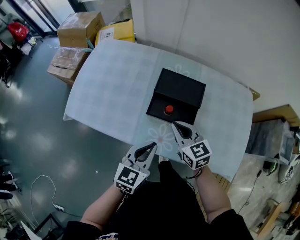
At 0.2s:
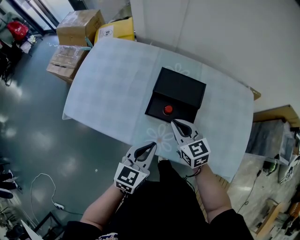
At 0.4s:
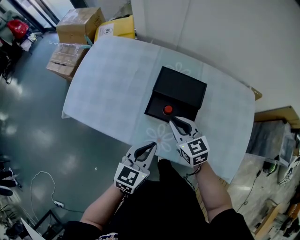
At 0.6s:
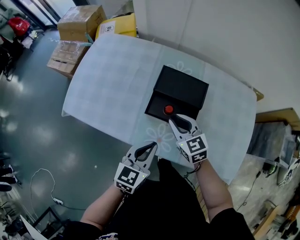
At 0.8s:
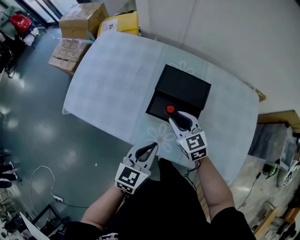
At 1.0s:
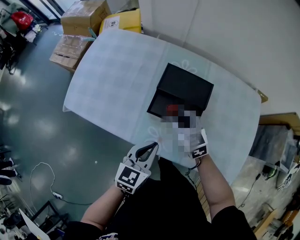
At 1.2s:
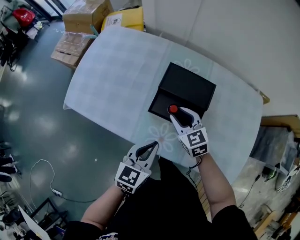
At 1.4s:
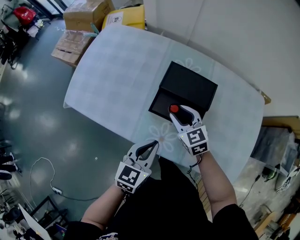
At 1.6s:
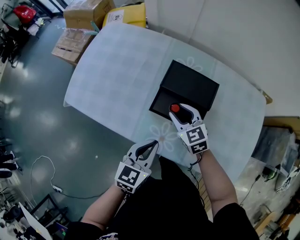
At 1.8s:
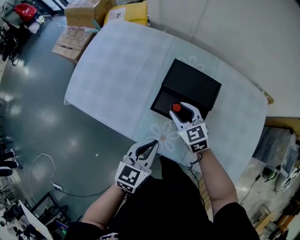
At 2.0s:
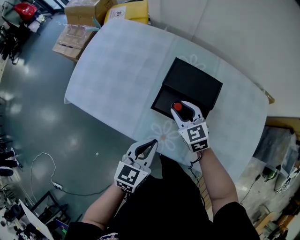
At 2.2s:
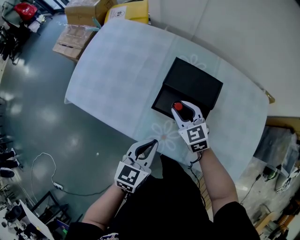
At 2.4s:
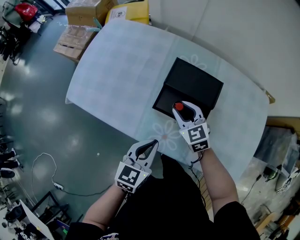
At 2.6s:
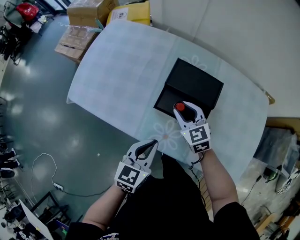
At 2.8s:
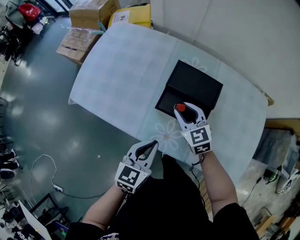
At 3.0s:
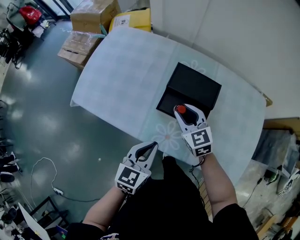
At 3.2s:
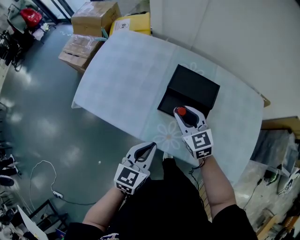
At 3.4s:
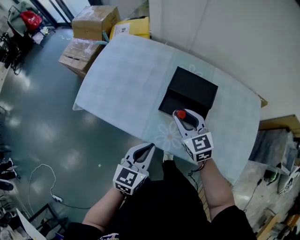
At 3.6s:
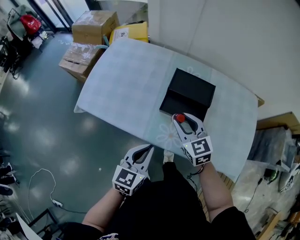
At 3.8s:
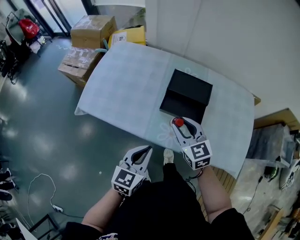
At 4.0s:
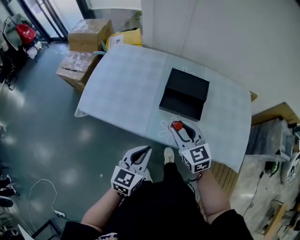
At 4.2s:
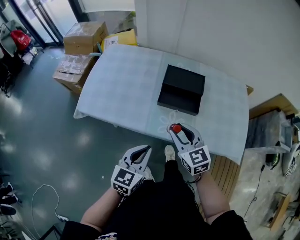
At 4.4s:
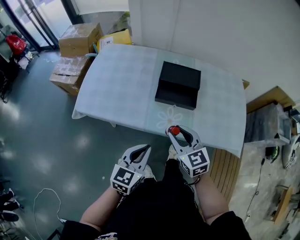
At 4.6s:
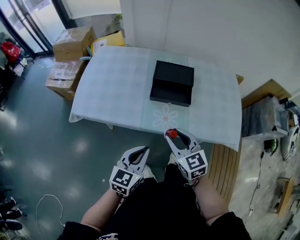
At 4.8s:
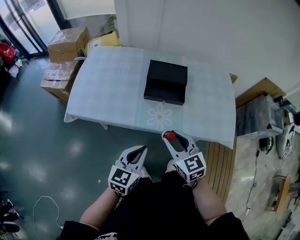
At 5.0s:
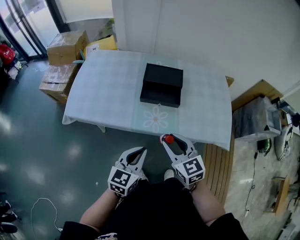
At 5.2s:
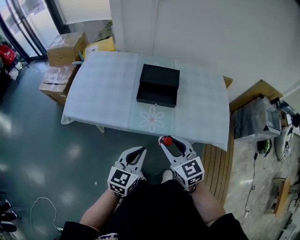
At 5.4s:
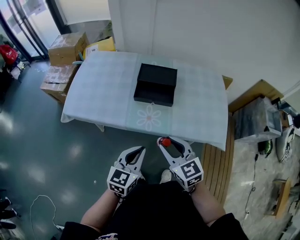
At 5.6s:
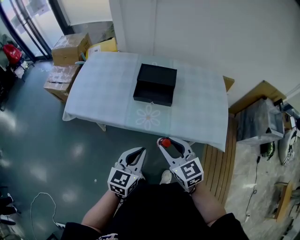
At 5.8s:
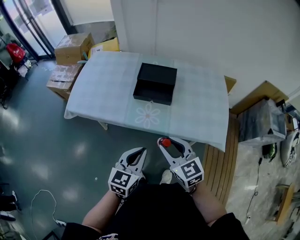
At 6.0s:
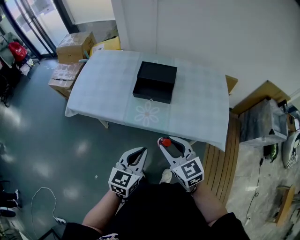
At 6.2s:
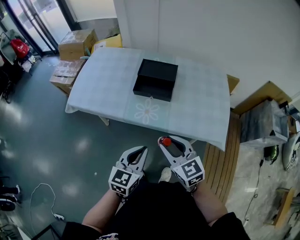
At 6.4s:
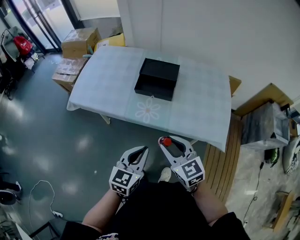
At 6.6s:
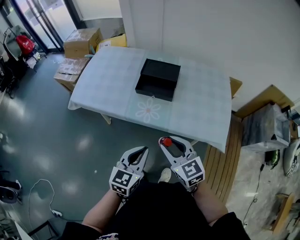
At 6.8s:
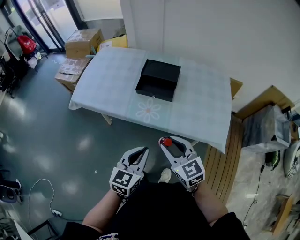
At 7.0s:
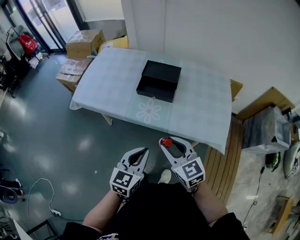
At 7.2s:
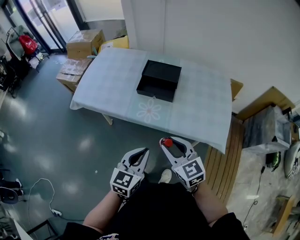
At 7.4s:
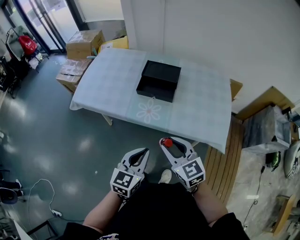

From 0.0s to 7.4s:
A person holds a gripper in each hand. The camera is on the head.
From 0.0s to 1.4s: The right gripper shifts some 10 cm forward and downward, and opens.
From 1.4s to 3.0s: The grippers make only small movements.
From 3.0s to 4.4s: The left gripper travels backward and to the left by about 15 cm. Meanwhile the right gripper travels backward by about 20 cm.
From 4.4s to 6.0s: The right gripper travels backward and to the right by roughly 15 cm; the left gripper moves to the right and backward, about 15 cm.
From 6.0s to 7.4s: The grippers move only a little.

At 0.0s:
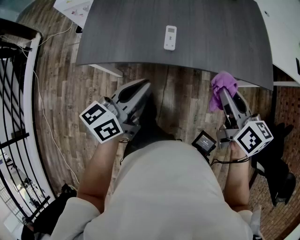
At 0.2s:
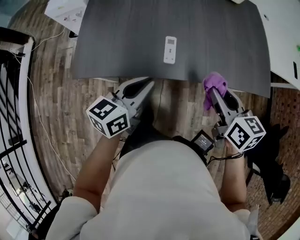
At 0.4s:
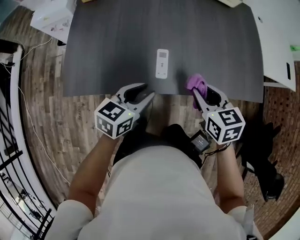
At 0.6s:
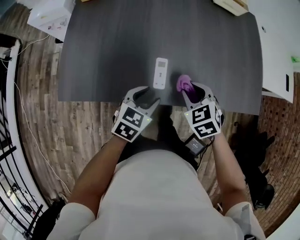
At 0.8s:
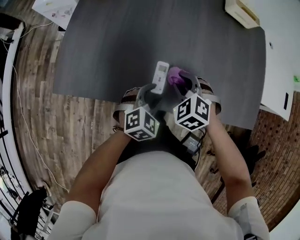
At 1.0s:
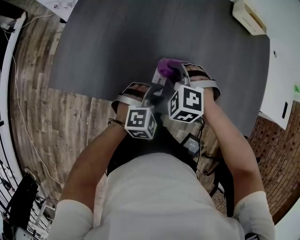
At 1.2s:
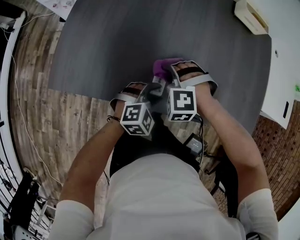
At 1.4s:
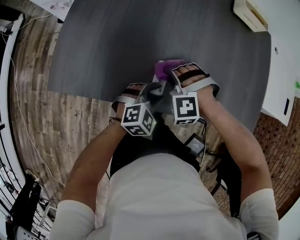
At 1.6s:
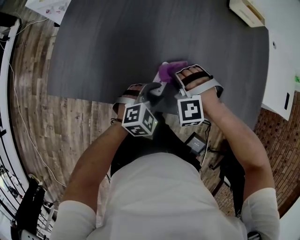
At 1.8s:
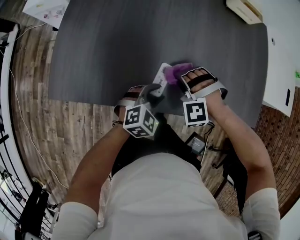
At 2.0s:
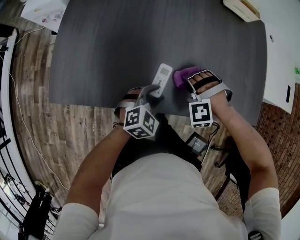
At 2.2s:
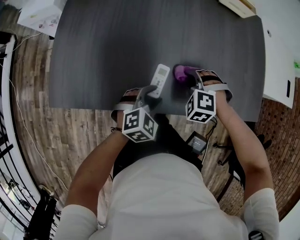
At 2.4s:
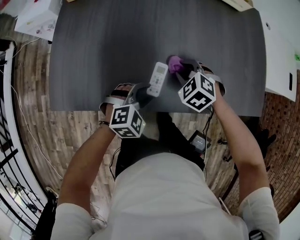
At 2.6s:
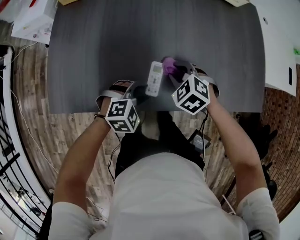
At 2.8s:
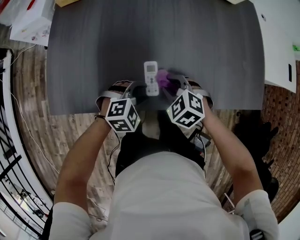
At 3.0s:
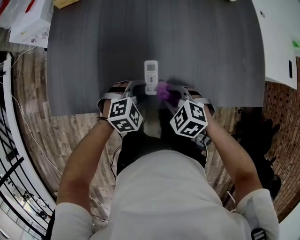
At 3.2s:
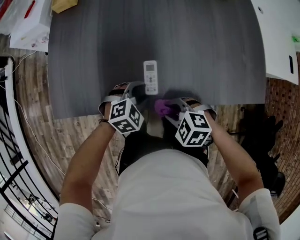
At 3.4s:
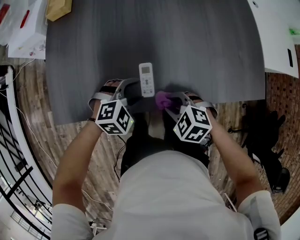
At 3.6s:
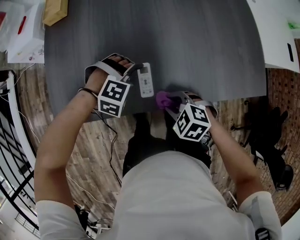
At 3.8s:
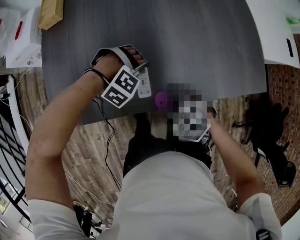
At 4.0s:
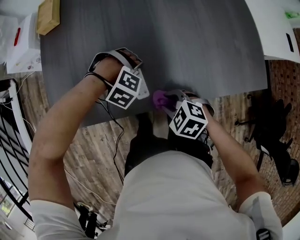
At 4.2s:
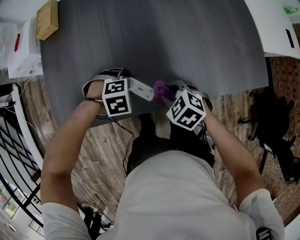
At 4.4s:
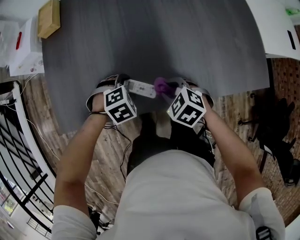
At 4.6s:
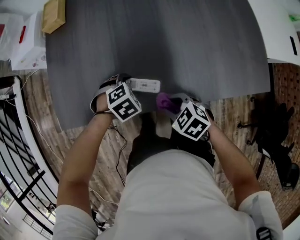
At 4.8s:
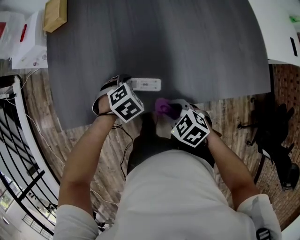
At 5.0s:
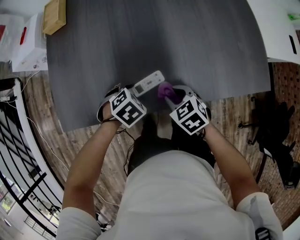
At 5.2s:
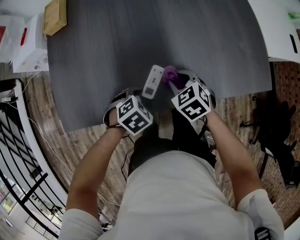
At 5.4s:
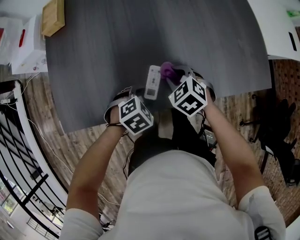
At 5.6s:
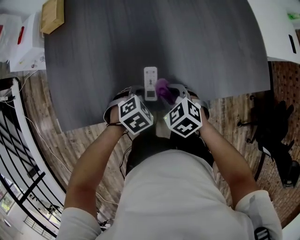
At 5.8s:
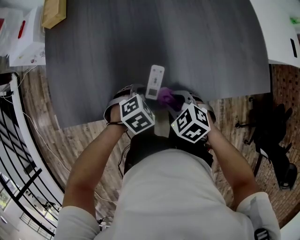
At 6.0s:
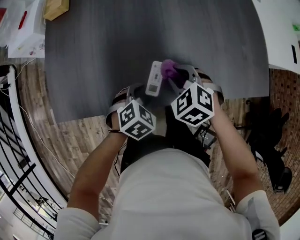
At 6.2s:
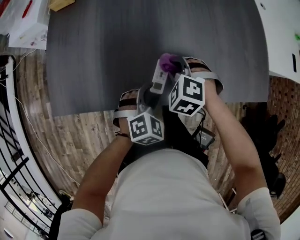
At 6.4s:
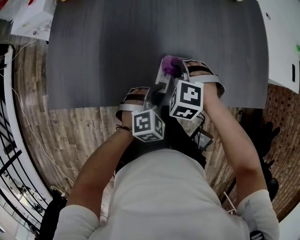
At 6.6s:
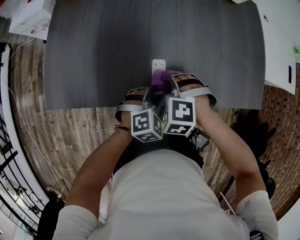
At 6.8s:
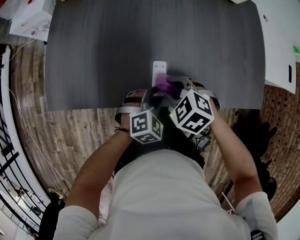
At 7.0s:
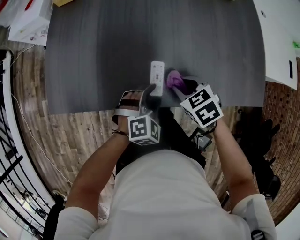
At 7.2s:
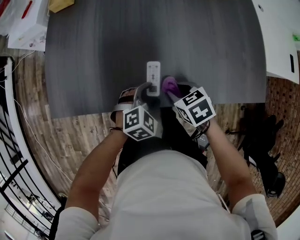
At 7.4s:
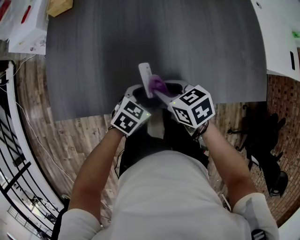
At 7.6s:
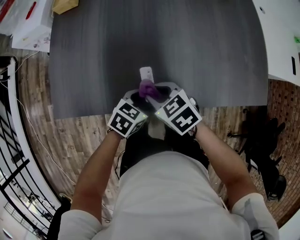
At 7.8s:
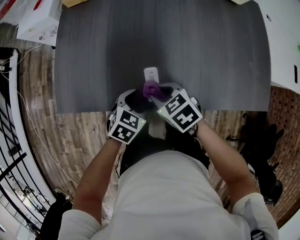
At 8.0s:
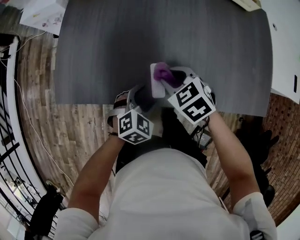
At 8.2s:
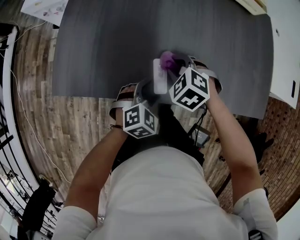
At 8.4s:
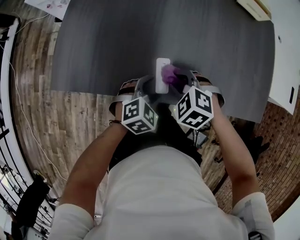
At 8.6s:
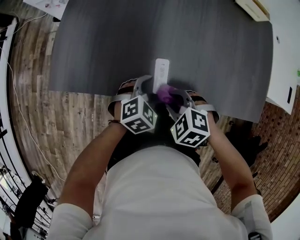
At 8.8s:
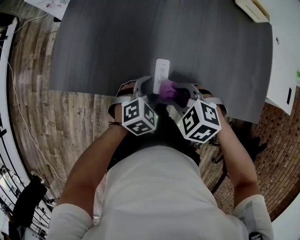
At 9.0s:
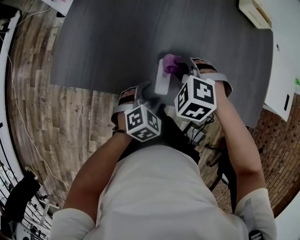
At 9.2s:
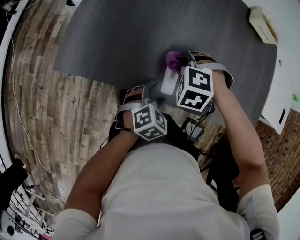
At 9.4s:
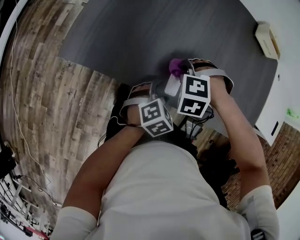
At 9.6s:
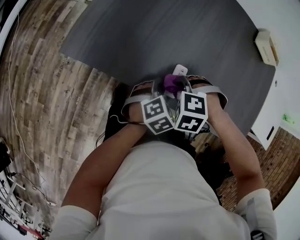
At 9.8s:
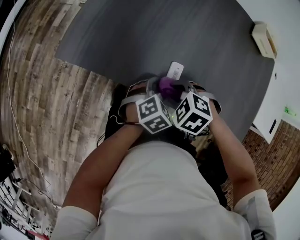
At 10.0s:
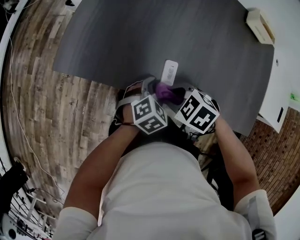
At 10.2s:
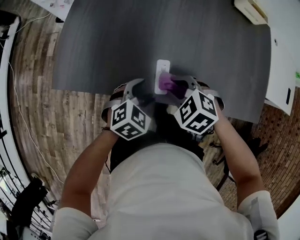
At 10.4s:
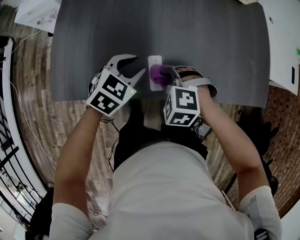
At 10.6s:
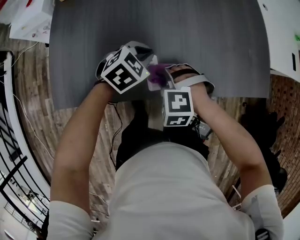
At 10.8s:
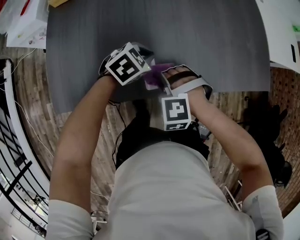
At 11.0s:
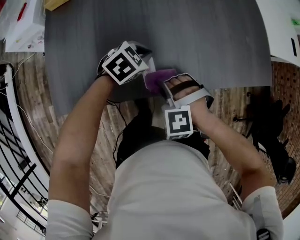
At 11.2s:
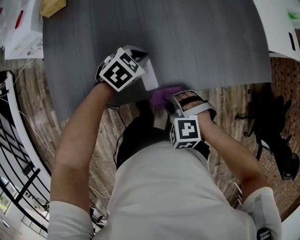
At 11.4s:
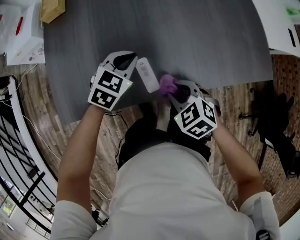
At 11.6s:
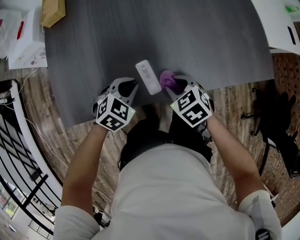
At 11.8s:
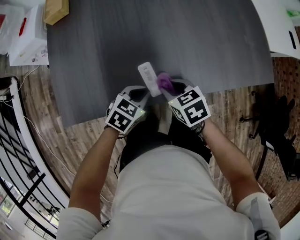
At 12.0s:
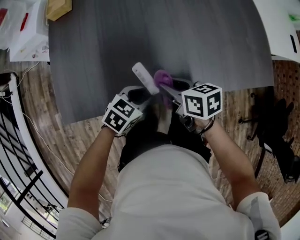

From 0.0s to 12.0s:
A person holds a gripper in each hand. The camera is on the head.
From 0.0s to 1.6s: The right gripper heads downward, forward and to the left, covering approximately 30 cm, and rolls counterclockwise, seen from behind, by some 120 degrees. Meanwhile the left gripper moves downward and forward, some 25 cm, twists roughly 50 degrees clockwise, seen from behind, and opens up.
From 1.6s to 3.0s: The left gripper swivels about 20 degrees, while the right gripper moves backward, about 5 cm, and twists roughly 60 degrees clockwise, seen from behind.
From 3.0s to 4.4s: The left gripper swivels roughly 20 degrees.
From 4.4s to 6.0s: The right gripper ends up some 5 cm from where it was, while the left gripper ends up some 5 cm from where it was, and changes its angle by some 30 degrees.
From 6.0s to 7.6s: The left gripper swivels some 30 degrees, while the right gripper changes place by about 10 cm, and rotates roughly 30 degrees.
From 7.6s to 9.0s: The left gripper changes its angle by about 30 degrees; the right gripper moves approximately 5 cm, and rolls counterclockwise, seen from behind, by approximately 60 degrees.
From 9.0s to 10.4s: The left gripper ends up approximately 10 cm from where it was, and closes up.
From 10.4s to 12.0s: The right gripper travels backward and back again, approximately 10 cm each way, and twists about 90 degrees clockwise, seen from behind; the left gripper travels backward, to the right and downward by about 10 cm, and changes its angle by approximately 20 degrees.

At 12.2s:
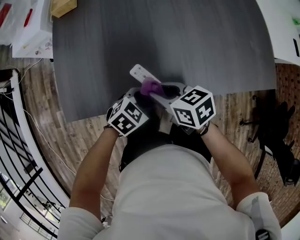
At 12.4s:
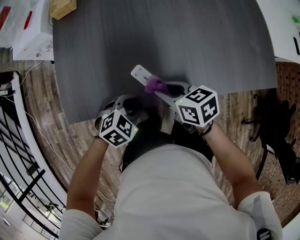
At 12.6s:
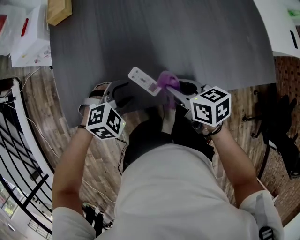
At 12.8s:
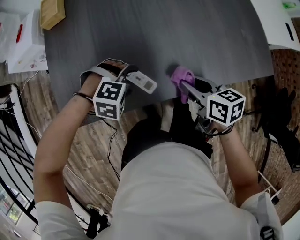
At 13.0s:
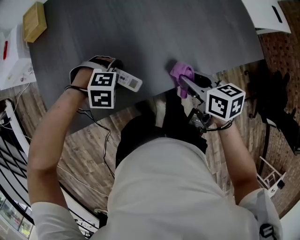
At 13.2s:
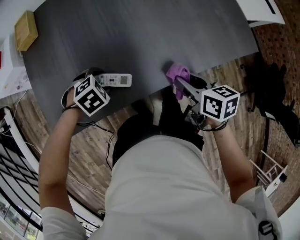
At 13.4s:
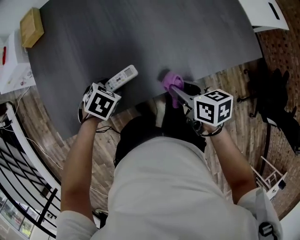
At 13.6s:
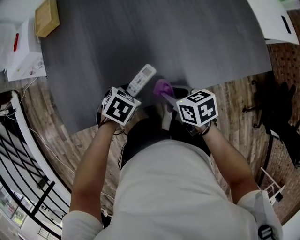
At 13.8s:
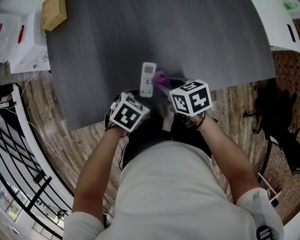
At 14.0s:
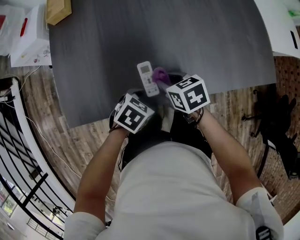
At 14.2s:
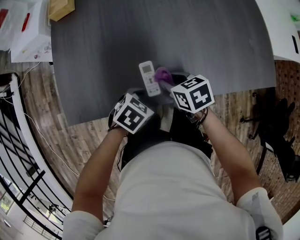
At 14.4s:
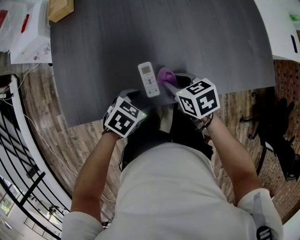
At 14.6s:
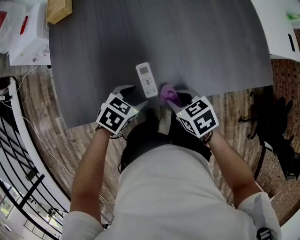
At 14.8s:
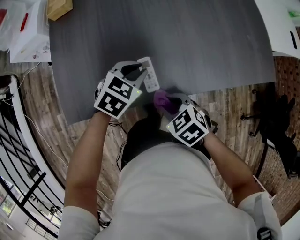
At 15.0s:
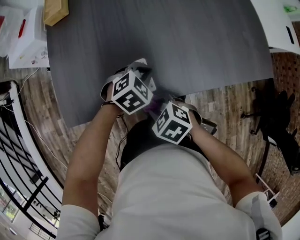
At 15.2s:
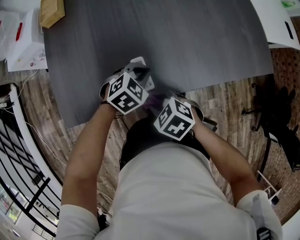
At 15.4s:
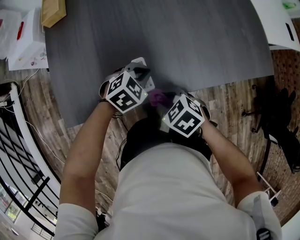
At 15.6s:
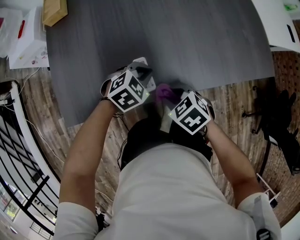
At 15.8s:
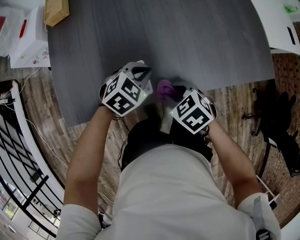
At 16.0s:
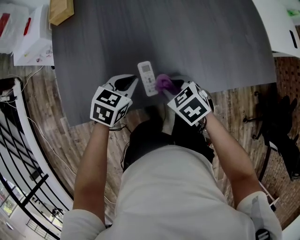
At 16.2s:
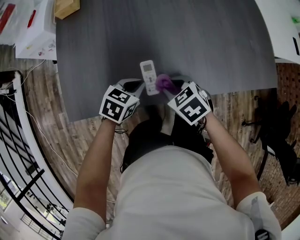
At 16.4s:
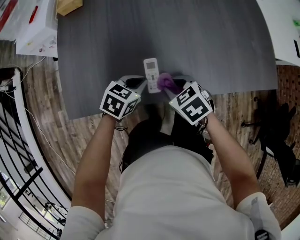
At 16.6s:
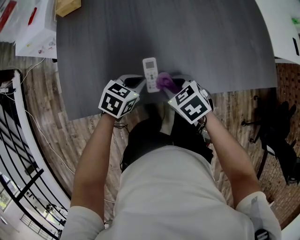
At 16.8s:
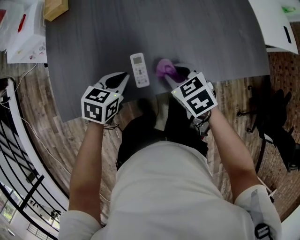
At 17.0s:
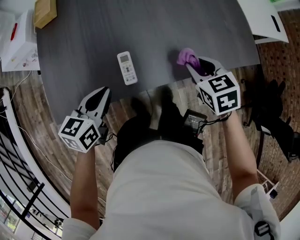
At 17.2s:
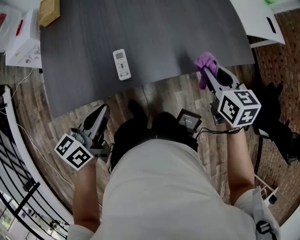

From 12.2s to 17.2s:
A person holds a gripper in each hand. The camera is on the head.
From 12.2s to 13.8s: The left gripper opens up.
From 13.8s to 15.6s: The left gripper moves roughly 10 cm, rotates about 30 degrees, and closes. Meanwhile the right gripper rotates some 30 degrees.
From 15.6s to 17.2s: The left gripper travels backward, upward and to the left by about 25 cm, and points its fingers about 40 degrees further upward, while the right gripper moves to the right and upward, roughly 25 cm, and rotates some 50 degrees.
